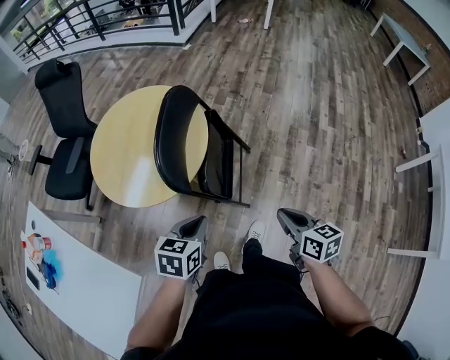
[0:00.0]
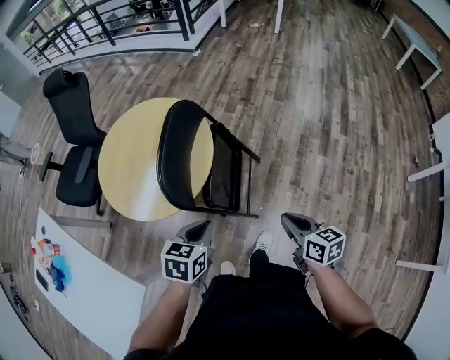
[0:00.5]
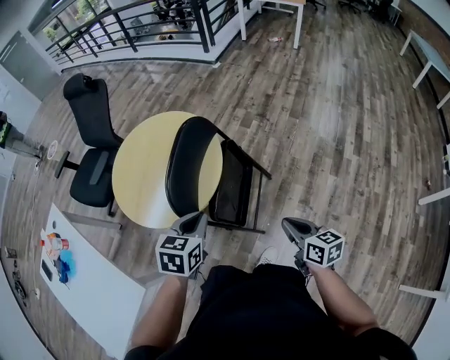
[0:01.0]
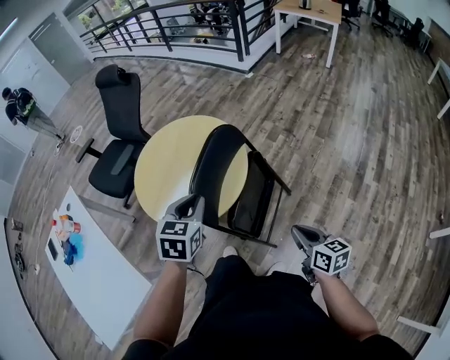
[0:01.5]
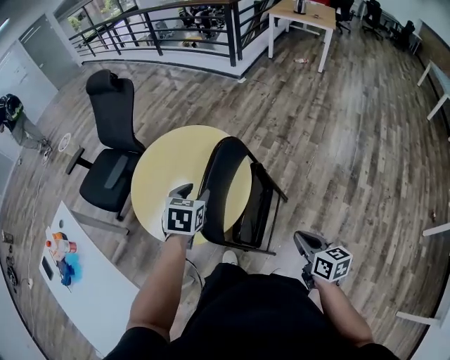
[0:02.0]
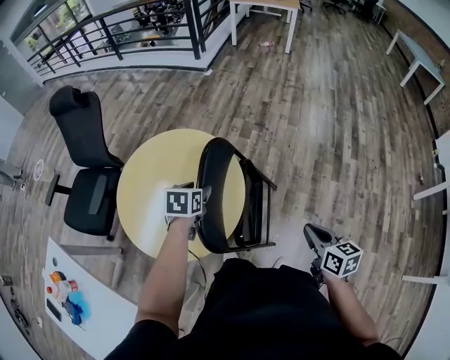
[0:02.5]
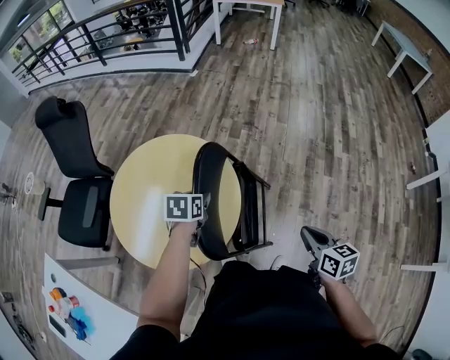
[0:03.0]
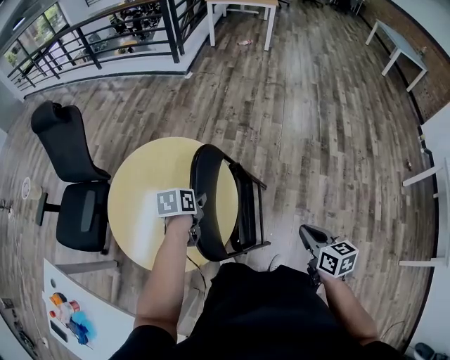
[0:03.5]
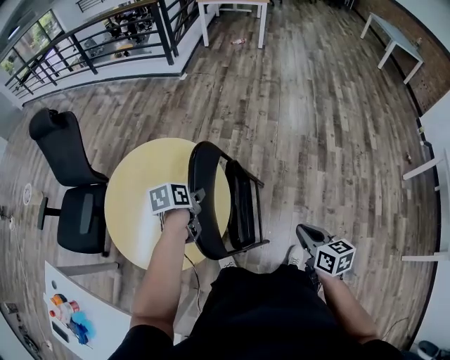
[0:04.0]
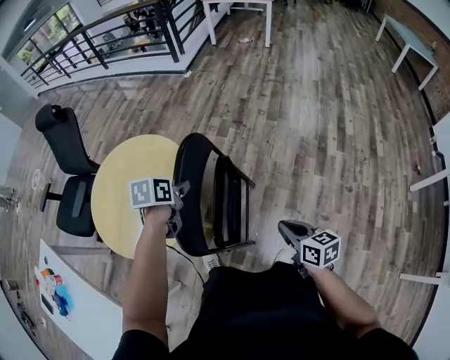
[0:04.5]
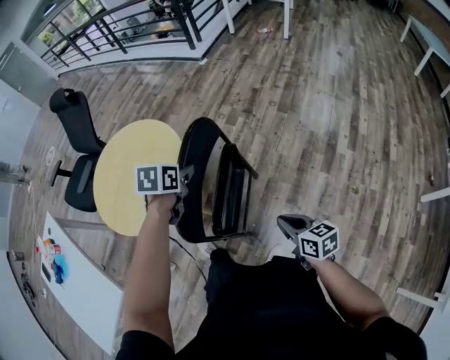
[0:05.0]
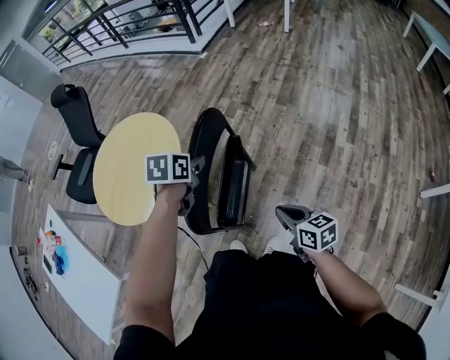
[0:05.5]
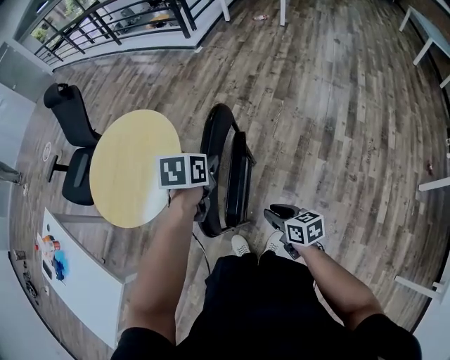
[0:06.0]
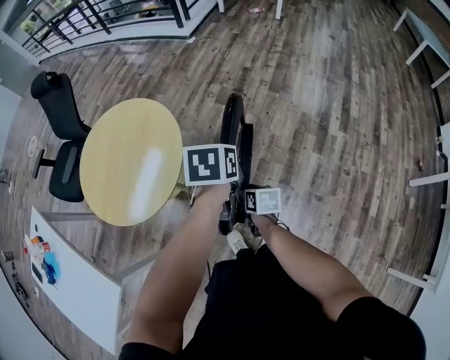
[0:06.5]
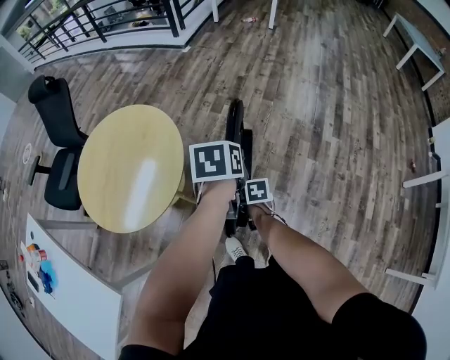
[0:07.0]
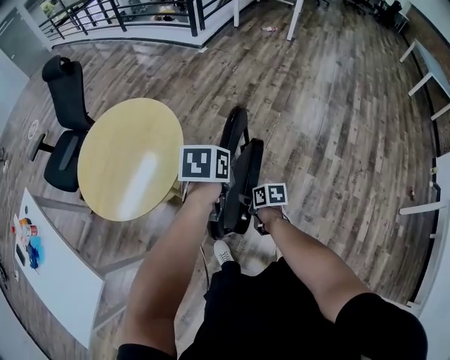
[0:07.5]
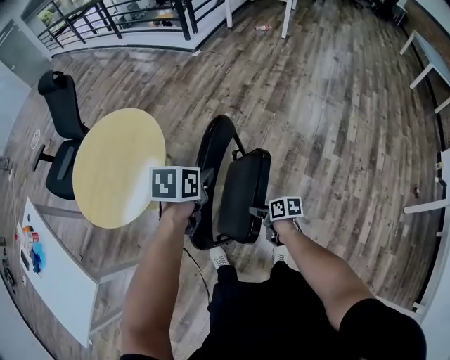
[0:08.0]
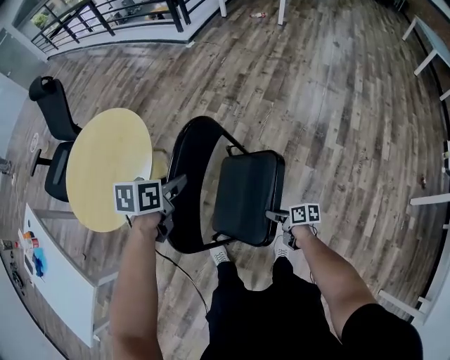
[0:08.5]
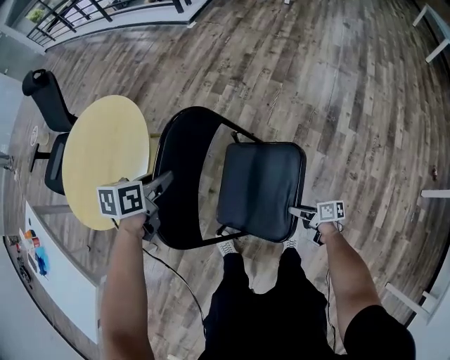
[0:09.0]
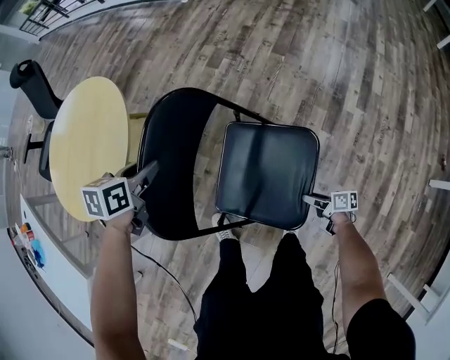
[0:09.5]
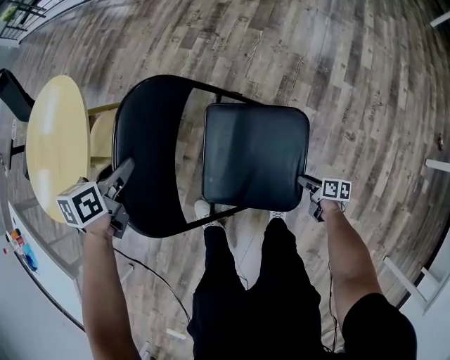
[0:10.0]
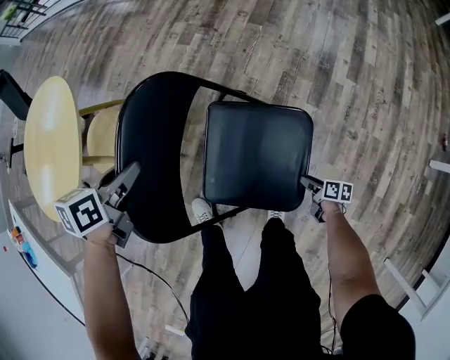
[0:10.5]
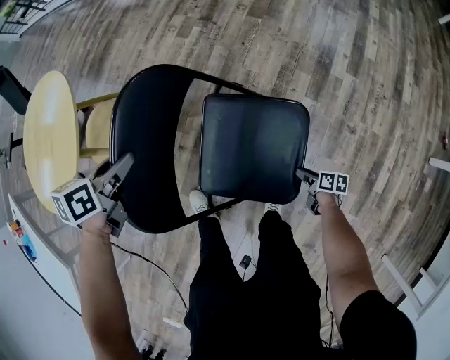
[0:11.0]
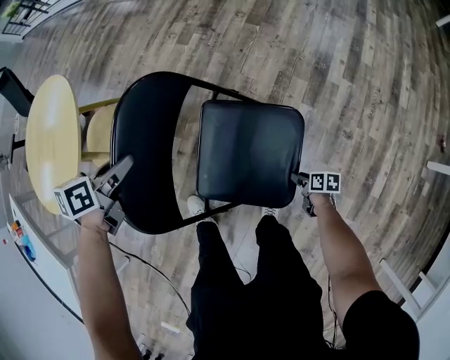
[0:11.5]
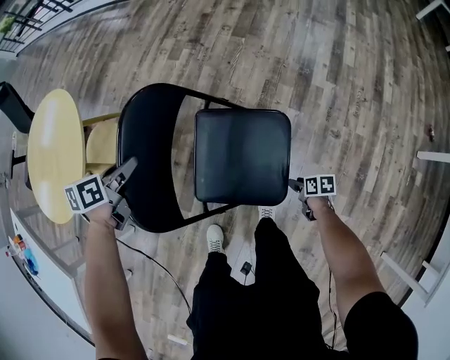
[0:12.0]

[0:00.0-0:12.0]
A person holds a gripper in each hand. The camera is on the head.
0:00.0 to 0:02.0: The right gripper shifts by some 15 cm. The left gripper ends up approximately 30 cm from where it was, swivels approximately 20 degrees, and opens.
0:02.0 to 0:04.0: The left gripper heads downward, covering about 10 cm, changes its angle by roughly 40 degrees, and closes.
0:04.0 to 0:06.0: The left gripper changes place by roughly 30 cm. The right gripper shifts by about 20 cm, rotates roughly 30 degrees, and opens its fingers.
0:06.0 to 0:08.0: The right gripper heads downward and forward, covering approximately 15 cm, reaches about 10 cm to the left, then returns, turns by some 30 degrees, and opens up.
0:08.0 to 0:10.0: The right gripper moves to the right, downward and backward, roughly 40 cm. Meanwhile the left gripper shifts about 20 cm downward.
0:10.0 to 0:12.0: The right gripper moves approximately 5 cm.

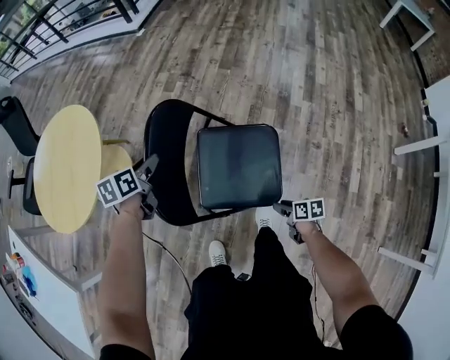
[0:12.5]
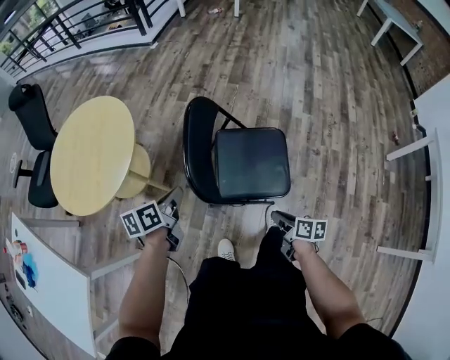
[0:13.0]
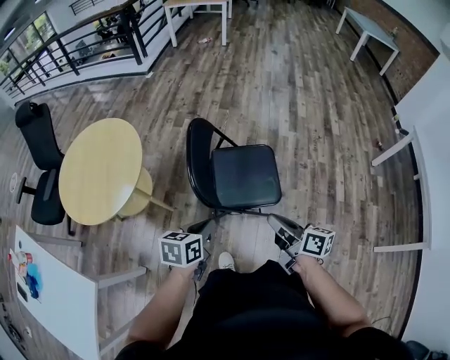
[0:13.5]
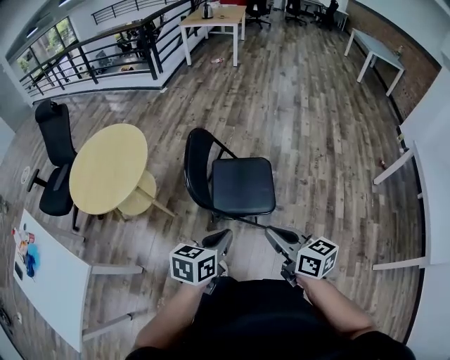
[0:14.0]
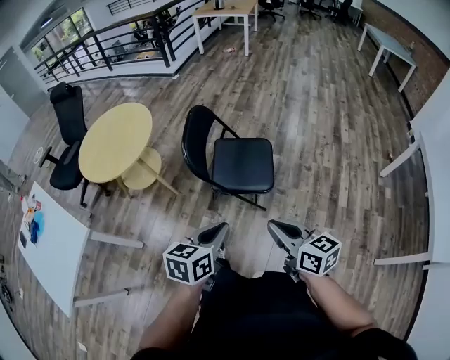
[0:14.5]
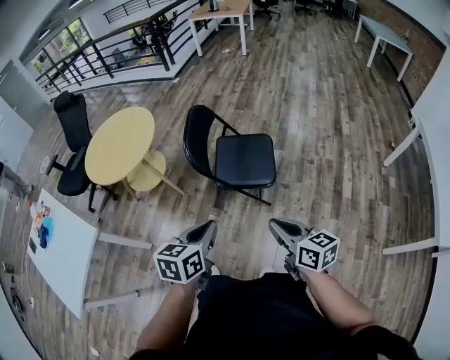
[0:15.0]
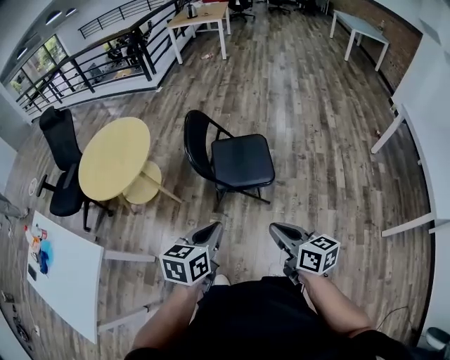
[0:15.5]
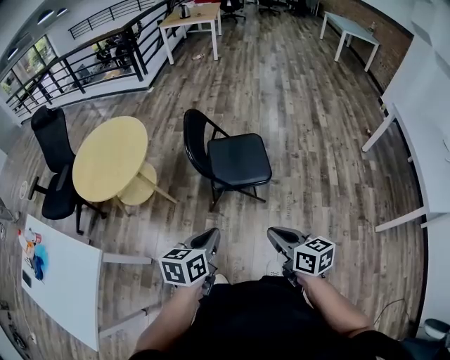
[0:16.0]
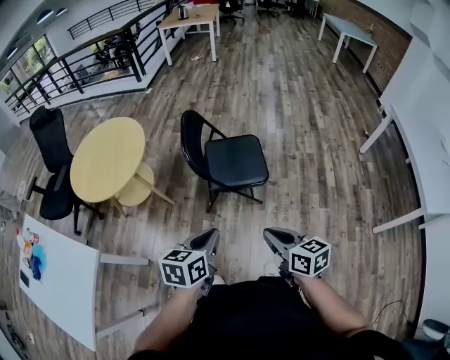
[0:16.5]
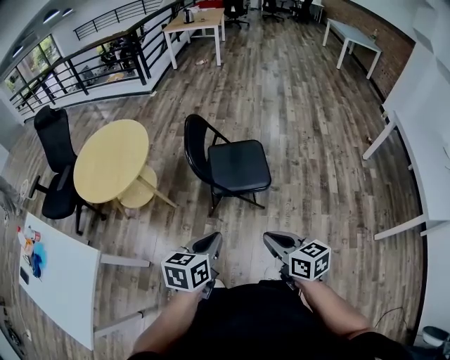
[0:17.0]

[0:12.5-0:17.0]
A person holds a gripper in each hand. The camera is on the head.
0:12.5 to 0:14.5: The left gripper goes some 60 cm backward and upward, turns by about 20 degrees, and closes up; the right gripper heads upward and backward, covering some 50 cm, tilts its fingers approximately 30 degrees upward, and closes its fingers.
0:14.5 to 0:17.0: Both grippers travel together to the left and backward, some 15 cm.

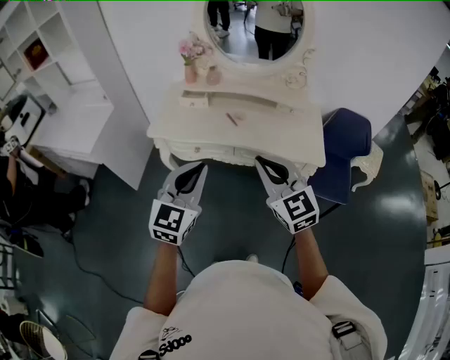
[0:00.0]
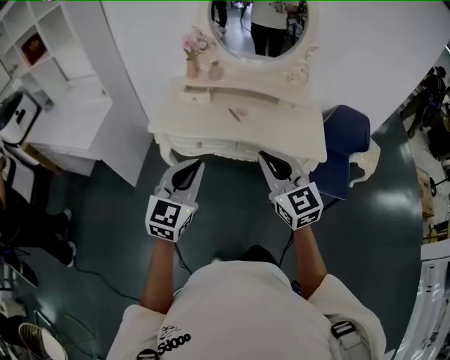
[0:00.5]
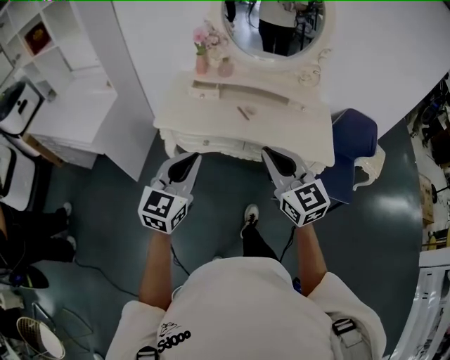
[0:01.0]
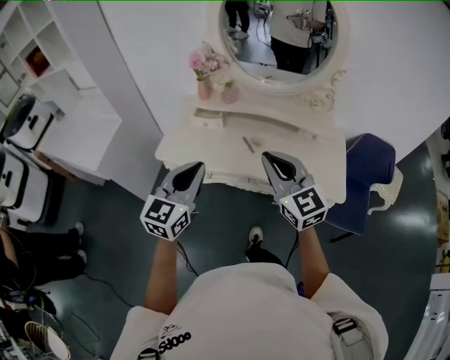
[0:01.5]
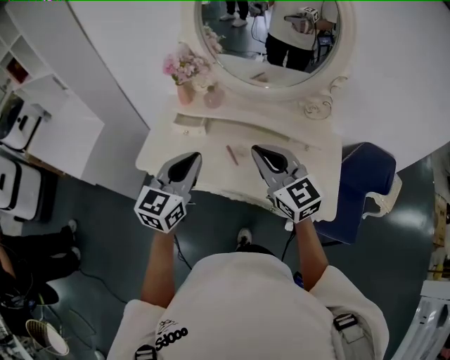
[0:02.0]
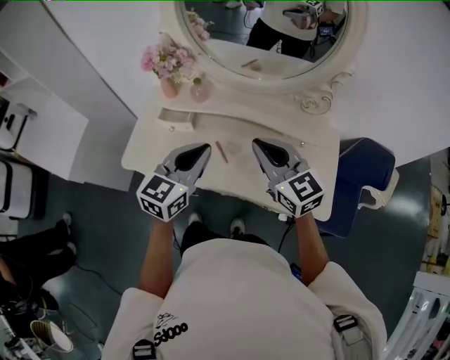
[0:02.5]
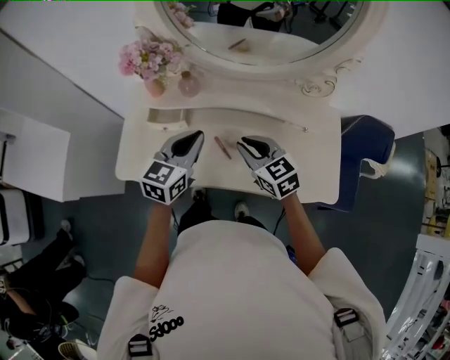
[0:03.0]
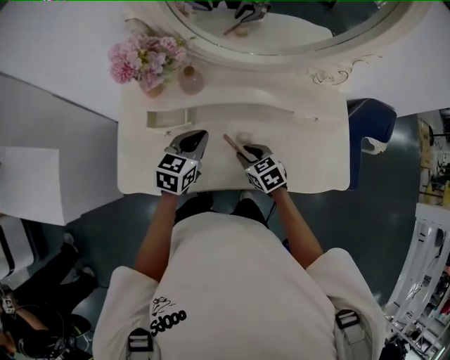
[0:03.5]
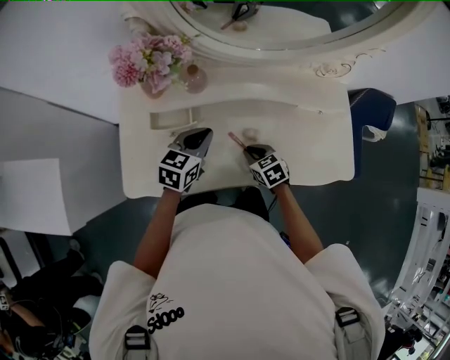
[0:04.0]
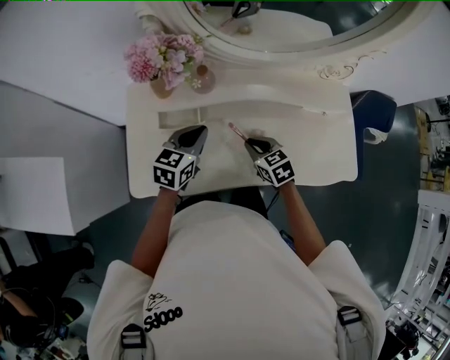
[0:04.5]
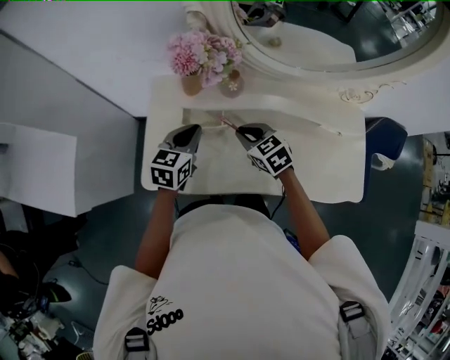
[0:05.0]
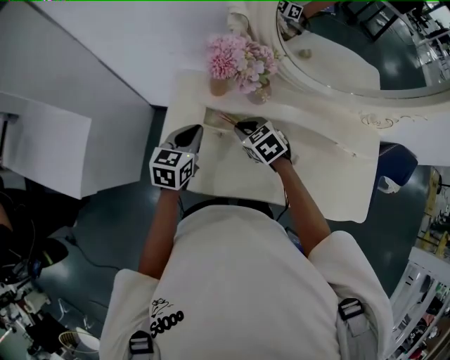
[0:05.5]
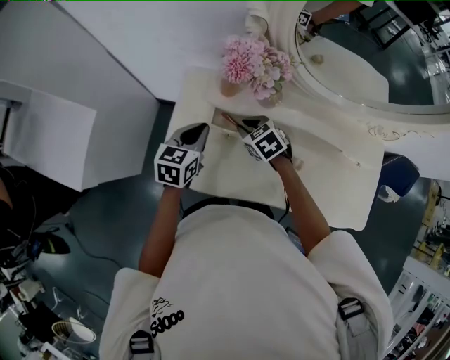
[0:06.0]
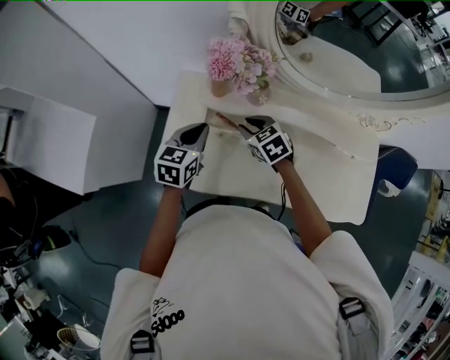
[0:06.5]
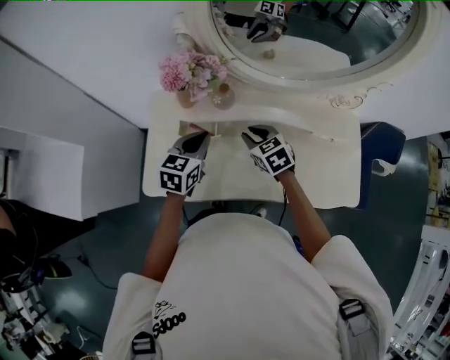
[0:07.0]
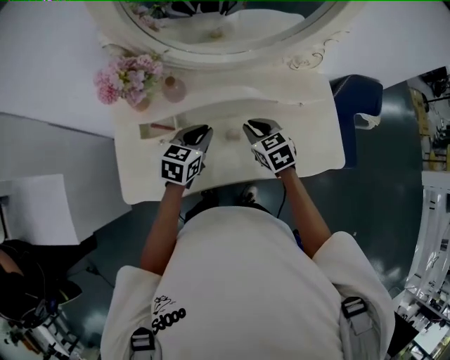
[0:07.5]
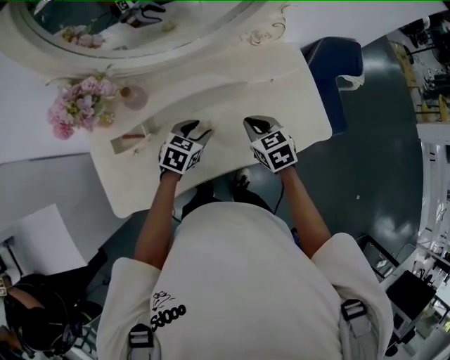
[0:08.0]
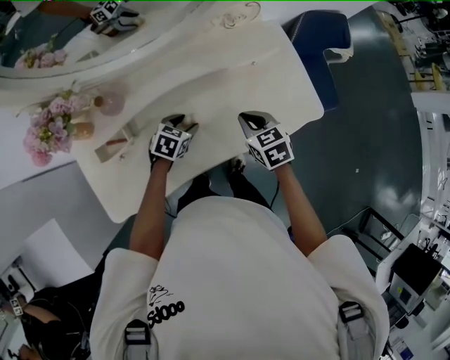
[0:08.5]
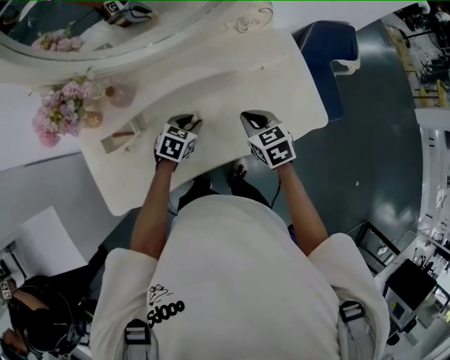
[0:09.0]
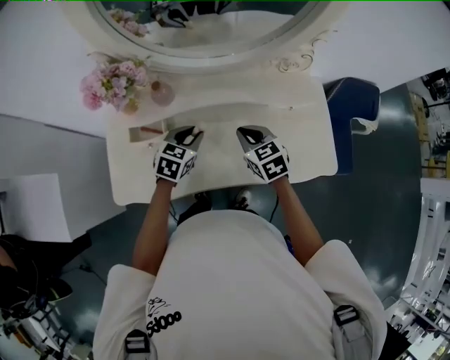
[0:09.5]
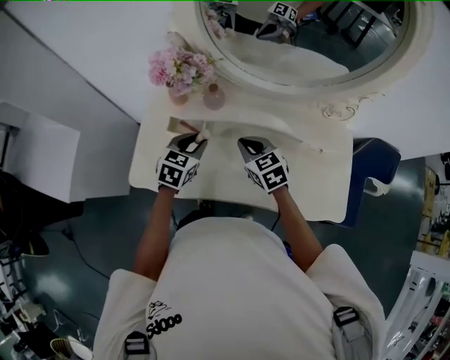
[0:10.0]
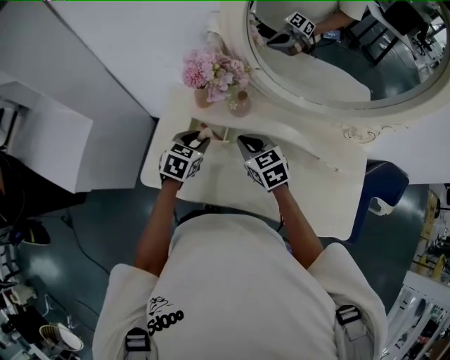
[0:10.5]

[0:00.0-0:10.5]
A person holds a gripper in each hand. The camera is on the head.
0:00.0 to 0:02.0: Both grippers move forward, approximately 30 cm.
0:02.0 to 0:04.0: The right gripper travels downward by about 35 cm, and tilts its fingers about 50 degrees downward. The left gripper shifts approximately 30 cm downward and forward, and turns by some 40 degrees.
0:04.0 to 0:06.5: The left gripper moves to the left, some 15 cm, and rotates approximately 20 degrees, while the right gripper moves to the left, forward and upward, approximately 25 cm, and turns by roughly 20 degrees.
0:06.5 to 0:08.5: The left gripper ends up about 35 cm from where it was, swivels about 50 degrees, and opens up; the right gripper shifts by roughly 35 cm, changes its angle by some 50 degrees, and closes its fingers.
0:08.5 to 0:10.5: The right gripper moves some 30 cm, and rotates approximately 50 degrees. The left gripper changes place by about 30 cm, swivels about 50 degrees, and closes.
